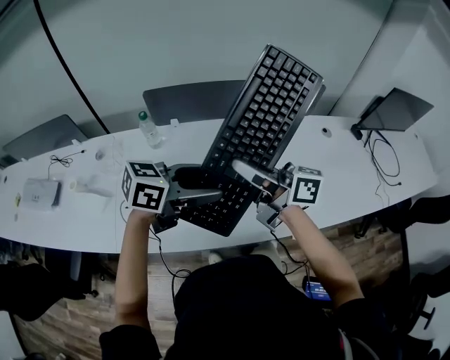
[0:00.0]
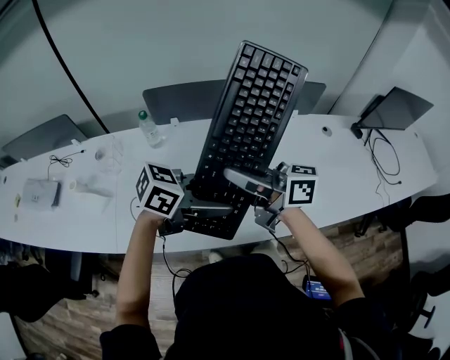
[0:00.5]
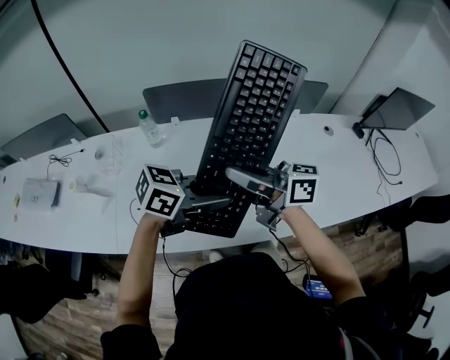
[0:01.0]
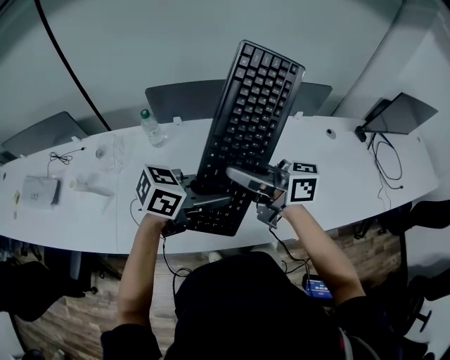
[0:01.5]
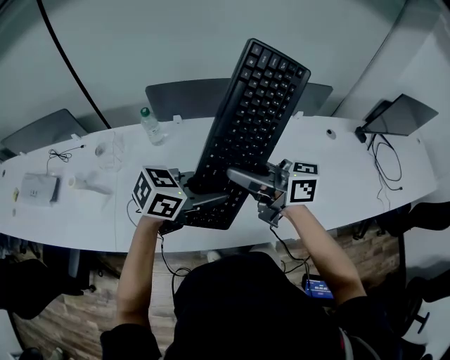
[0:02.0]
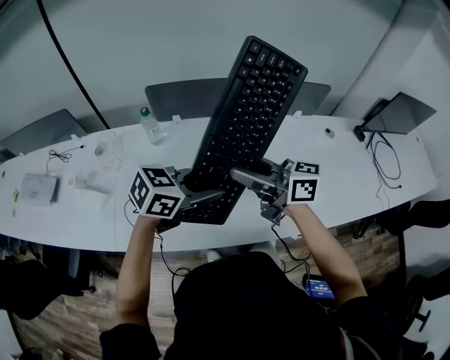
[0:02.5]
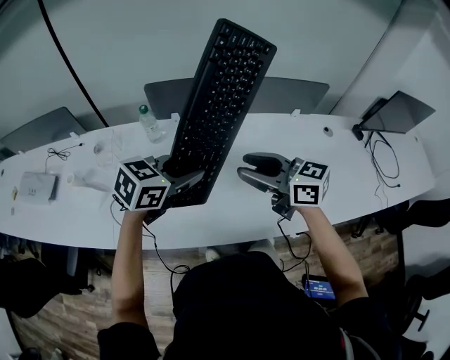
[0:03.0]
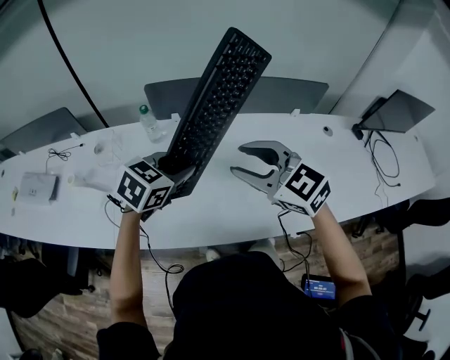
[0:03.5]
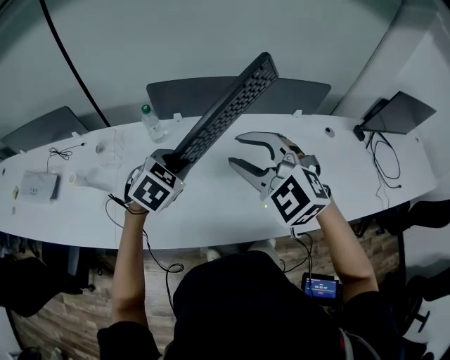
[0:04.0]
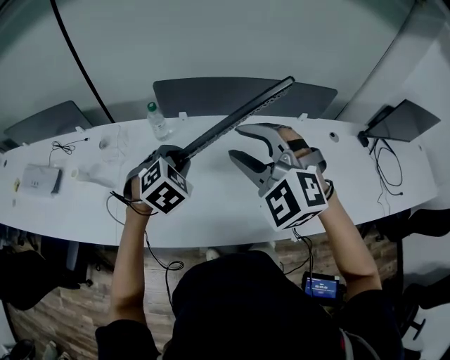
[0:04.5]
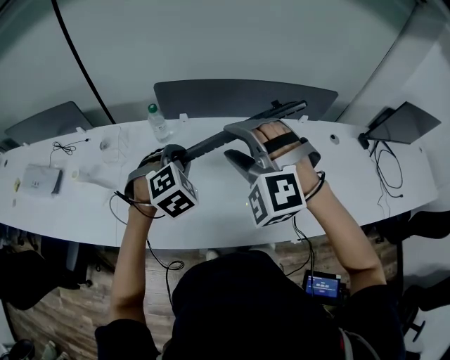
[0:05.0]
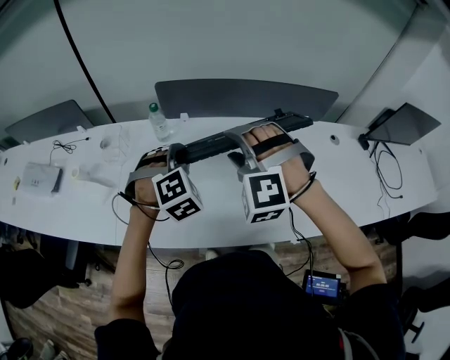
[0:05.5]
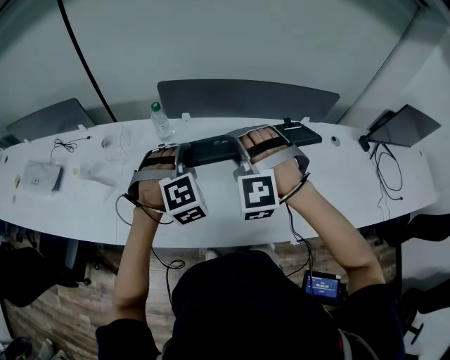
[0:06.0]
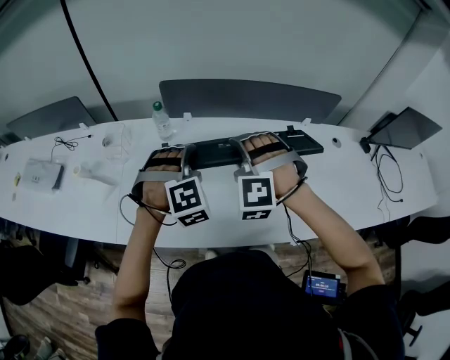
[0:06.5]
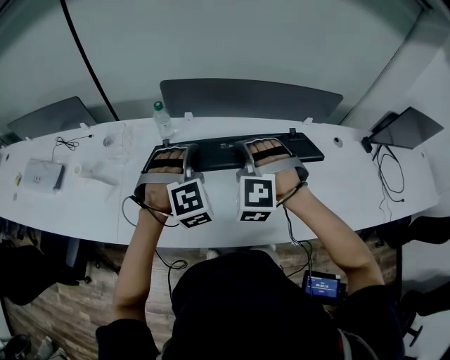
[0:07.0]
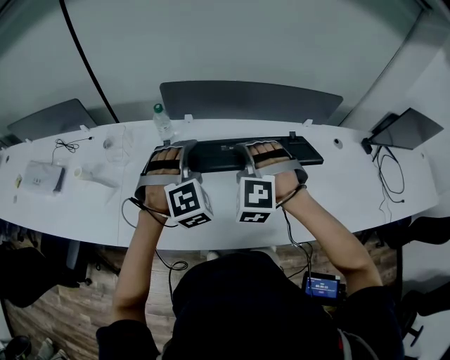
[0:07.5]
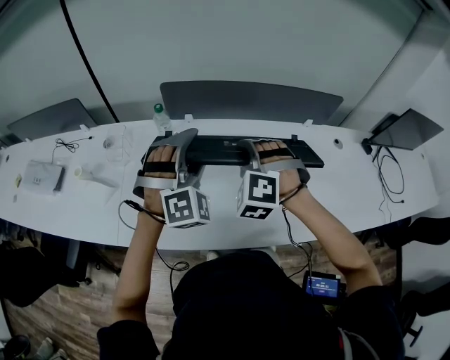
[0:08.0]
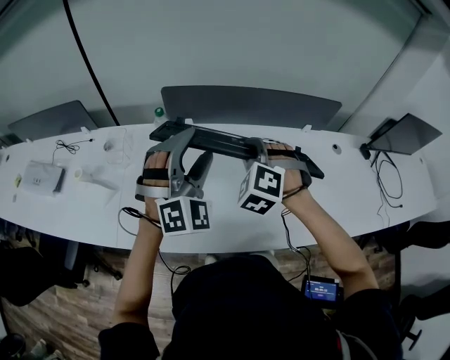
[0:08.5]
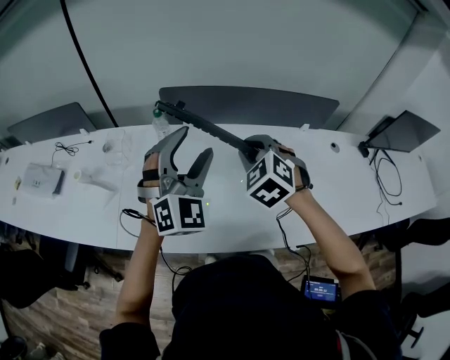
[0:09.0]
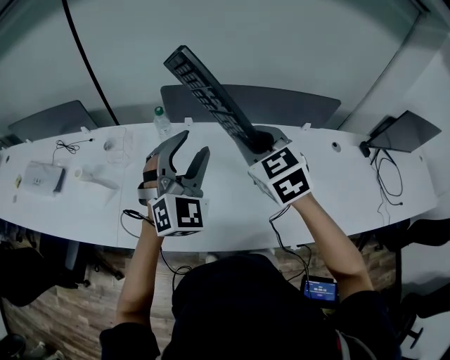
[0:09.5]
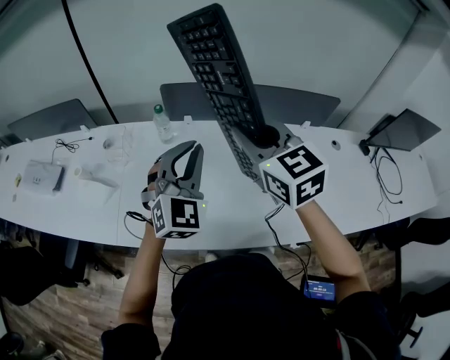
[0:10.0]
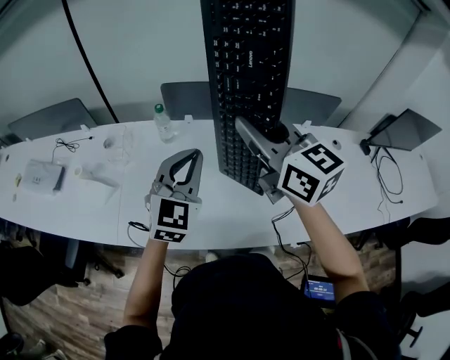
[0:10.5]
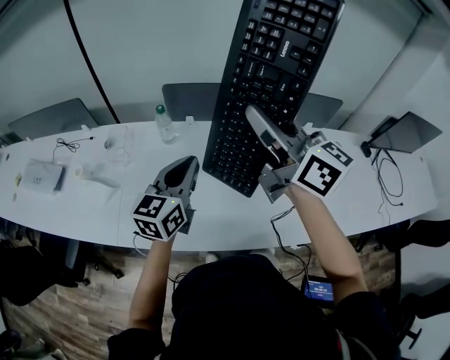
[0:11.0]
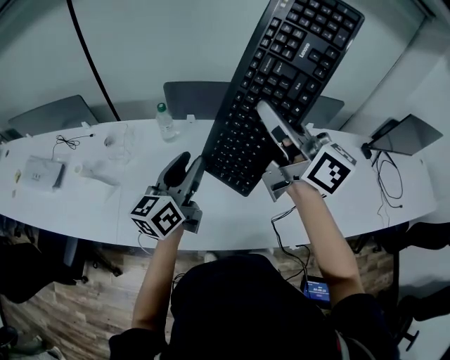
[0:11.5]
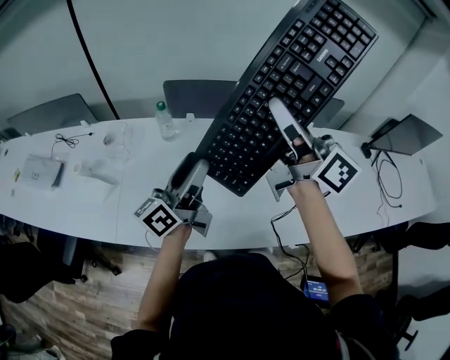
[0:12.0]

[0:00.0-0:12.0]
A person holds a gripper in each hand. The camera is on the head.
0:00.0 to 0:02.0: The left gripper closes.
0:02.0 to 0:04.0: The right gripper rotates around the line of its fingers by roughly 70 degrees, counterclockwise from behind. The left gripper changes place by approximately 15 cm, and swivels some 50 degrees.
0:04.0 to 0:06.0: The right gripper is displaced downward and forward by about 10 cm, and turns by approximately 50 degrees, while the left gripper swivels about 40 degrees.
0:06.0 to 0:08.0: The left gripper goes about 5 cm upward, rotates roughly 20 degrees, and opens its fingers. The right gripper closes its fingers.
0:08.0 to 0:10.0: The left gripper changes place by approximately 5 cm, swivels roughly 40 degrees, and closes its fingers. Meanwhile the right gripper moves upward, some 15 cm, and twists some 60 degrees clockwise, seen from behind.
0:10.0 to 0:12.0: The right gripper shifts some 10 cm upward and to the right, and tips its fingers upward by about 40 degrees, while the left gripper rotates around the line of its fingers by approximately 80 degrees, counterclockwise from behind, and opens.

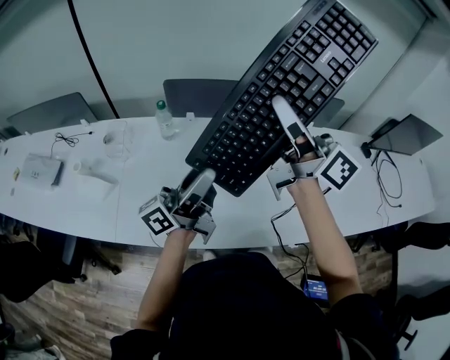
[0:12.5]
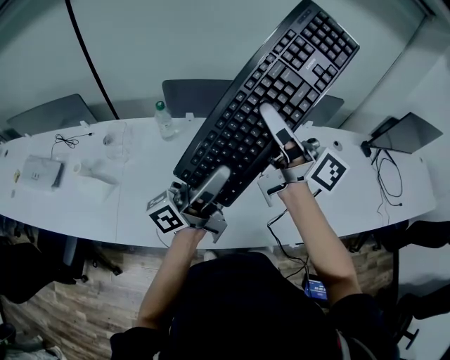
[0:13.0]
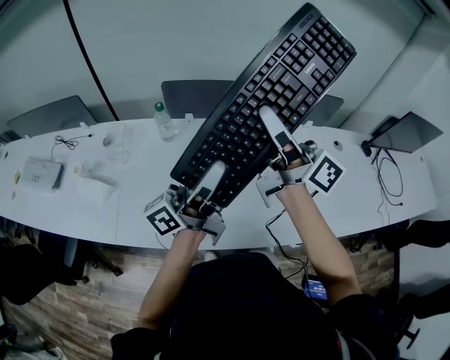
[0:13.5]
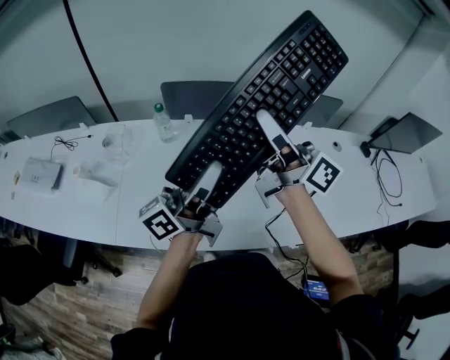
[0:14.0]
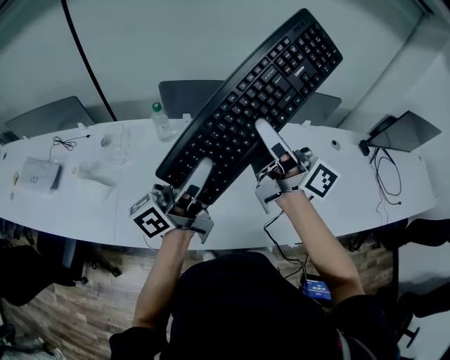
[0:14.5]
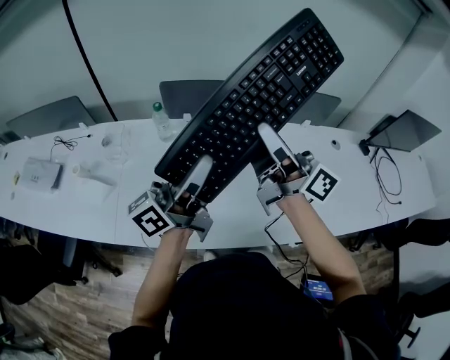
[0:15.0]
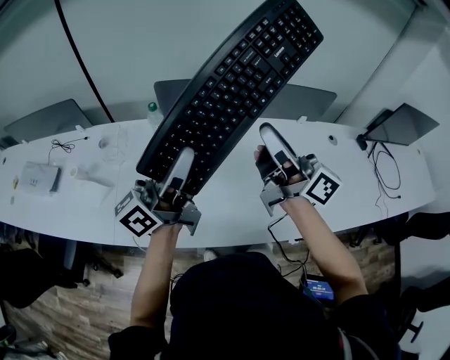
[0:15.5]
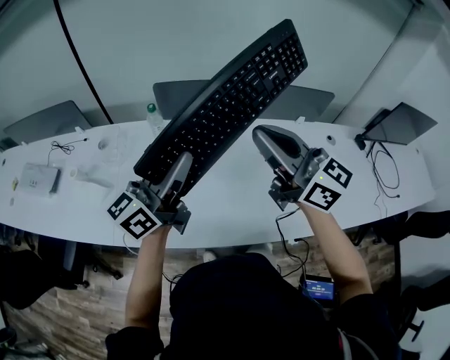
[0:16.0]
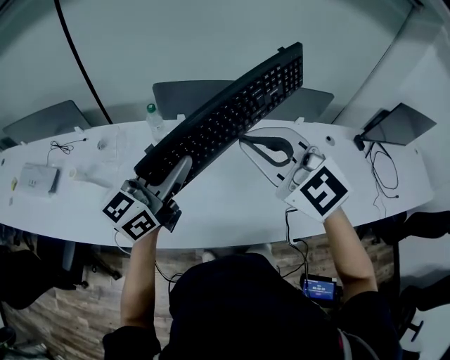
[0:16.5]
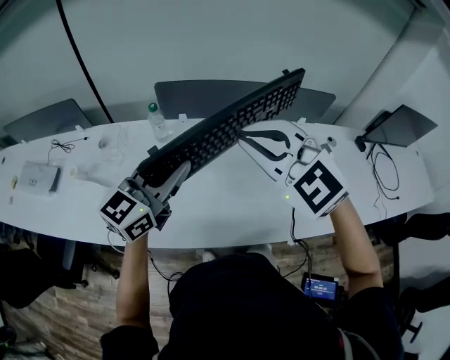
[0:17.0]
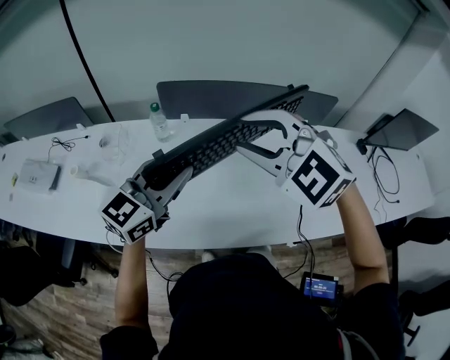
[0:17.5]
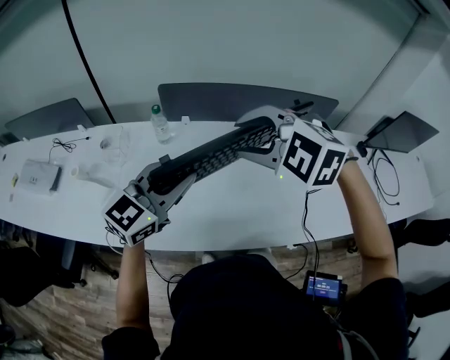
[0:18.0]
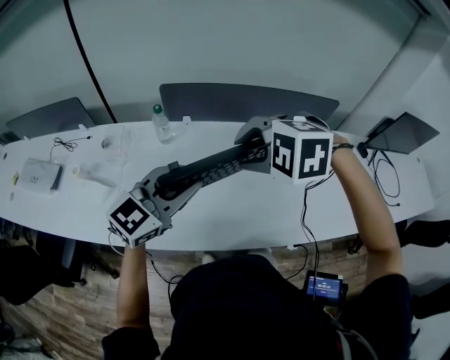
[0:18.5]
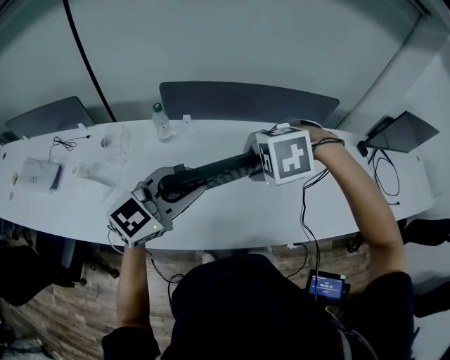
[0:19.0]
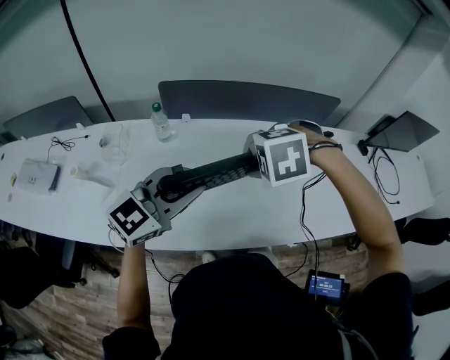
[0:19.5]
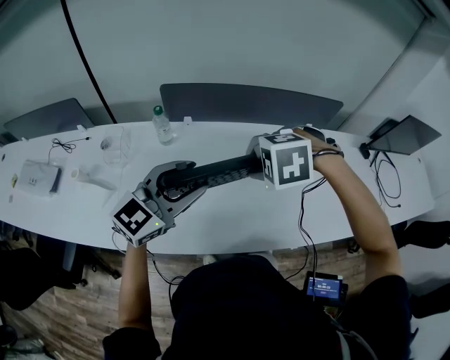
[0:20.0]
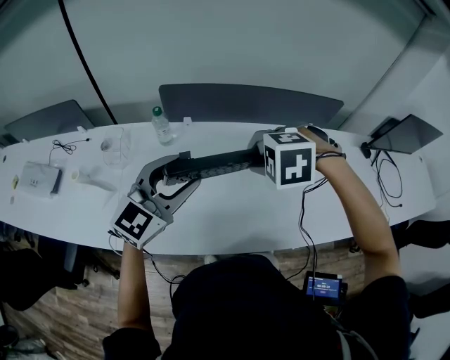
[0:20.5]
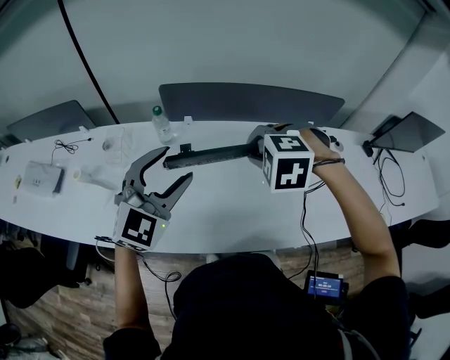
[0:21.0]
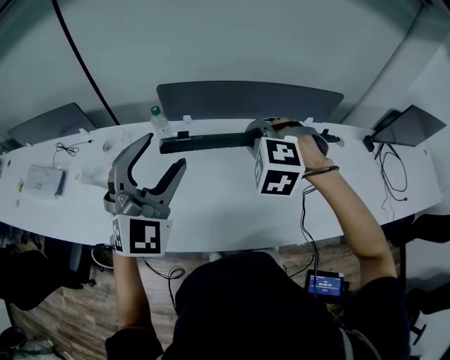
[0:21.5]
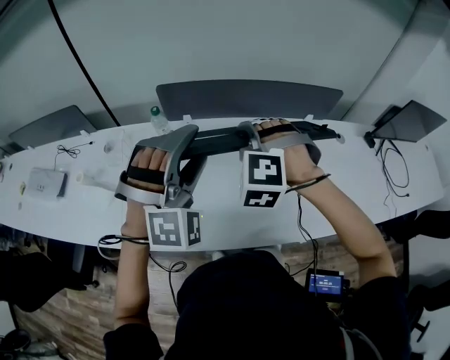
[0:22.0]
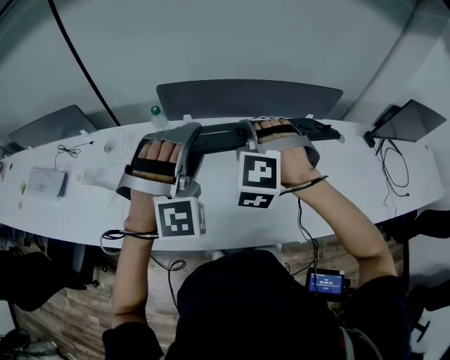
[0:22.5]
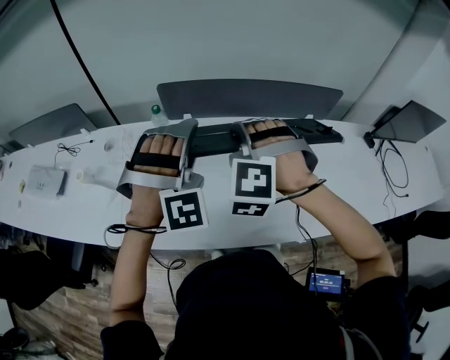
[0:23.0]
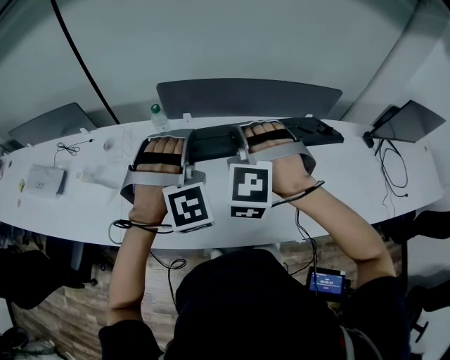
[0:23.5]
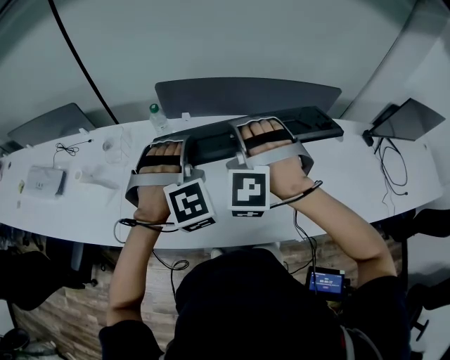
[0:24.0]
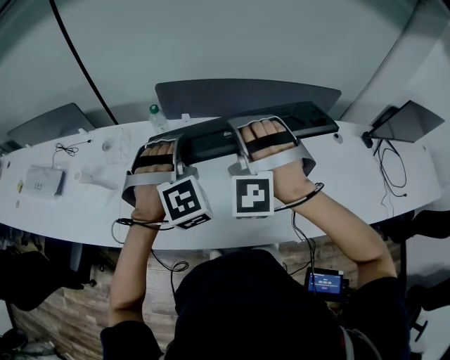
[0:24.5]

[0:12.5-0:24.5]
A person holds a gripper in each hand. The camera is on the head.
0:12.5 to 0:14.5: The right gripper changes place by some 5 cm. The left gripper closes its fingers.
0:14.5 to 0:16.5: The right gripper moves backward, approximately 5 cm, rotates around the line of its fingers by some 70 degrees, counterclockwise from behind, and closes up; the left gripper changes its angle by some 40 degrees.
0:16.5 to 0:18.5: The right gripper moves downward, roughly 10 cm, angles its fingers downward, by approximately 50 degrees, and opens up. The left gripper swivels roughly 30 degrees.
0:18.5 to 0:20.5: The right gripper heads downward, covering about 5 cm, and closes its fingers, while the left gripper opens.
0:20.5 to 0:22.5: The left gripper ends up roughly 5 cm from where it was, and rotates around the line of its fingers by some 60 degrees, clockwise from behind. Meanwhile the right gripper moves about 5 cm, and points its fingers roughly 40 degrees further upward.
0:22.5 to 0:24.5: The left gripper ends up about 5 cm from where it was, and closes its fingers. The right gripper opens.

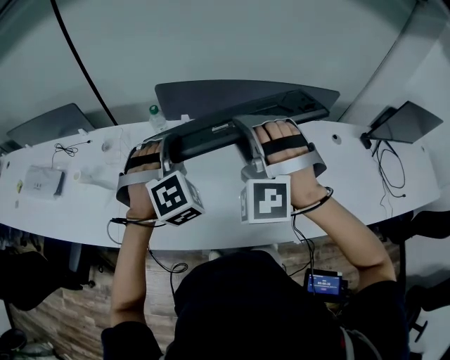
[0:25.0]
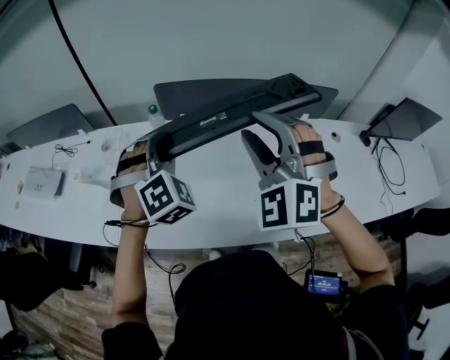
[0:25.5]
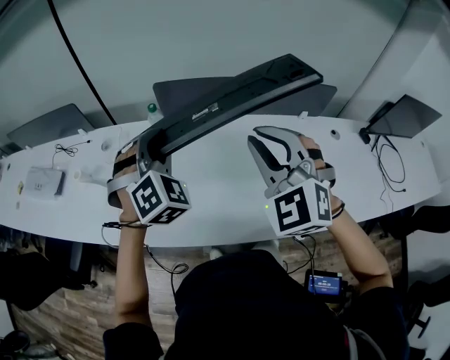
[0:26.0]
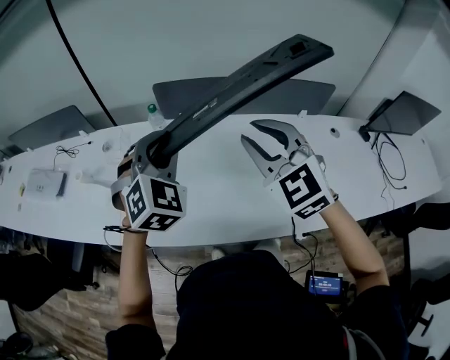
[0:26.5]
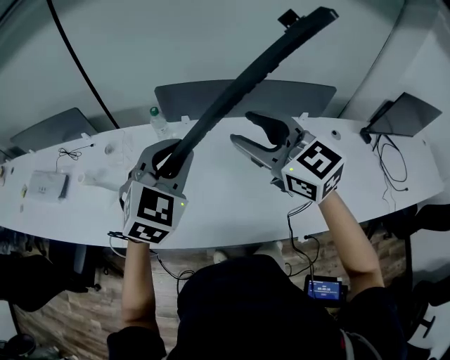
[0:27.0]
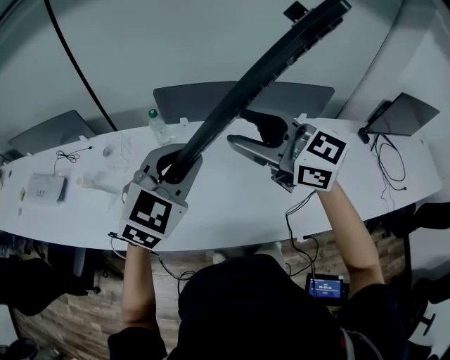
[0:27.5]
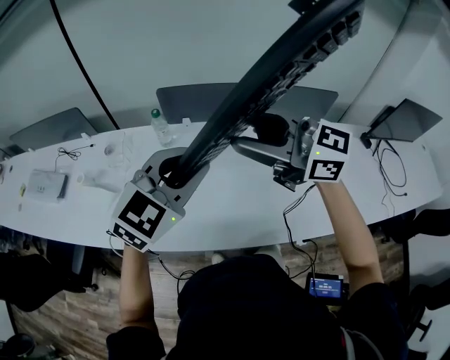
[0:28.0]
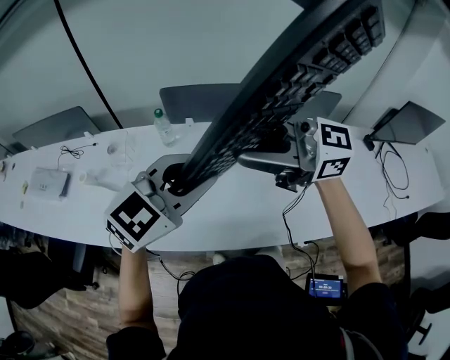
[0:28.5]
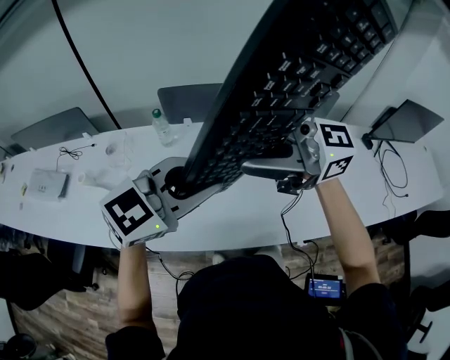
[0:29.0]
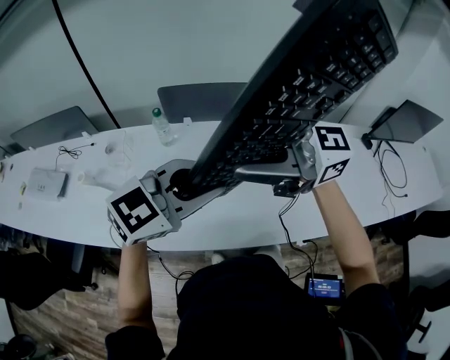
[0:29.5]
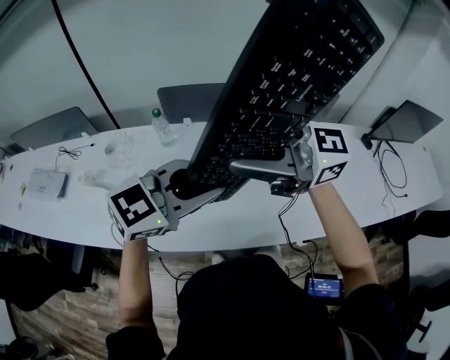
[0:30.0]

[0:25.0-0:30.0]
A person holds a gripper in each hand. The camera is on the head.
0:25.0 to 0:27.5: The right gripper heads upward, covering some 5 cm, swivels roughly 90 degrees, and closes, then reopens. Meanwhile the left gripper heads backward and upward, covering about 10 cm, and swivels roughly 50 degrees.
0:27.5 to 0:30.0: The right gripper moves approximately 5 cm, rotates approximately 40 degrees, and closes its fingers. The left gripper changes place by roughly 5 cm, and changes its angle by about 40 degrees.
